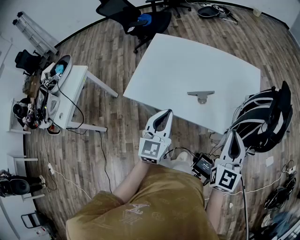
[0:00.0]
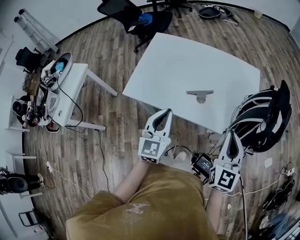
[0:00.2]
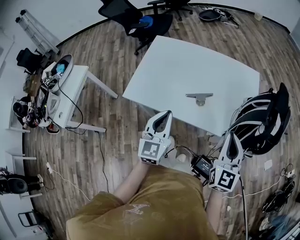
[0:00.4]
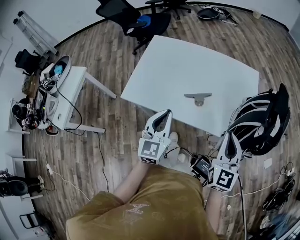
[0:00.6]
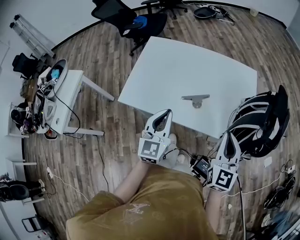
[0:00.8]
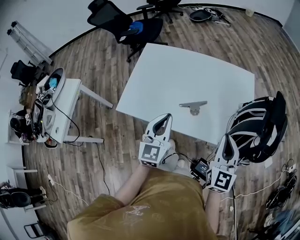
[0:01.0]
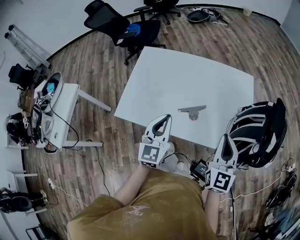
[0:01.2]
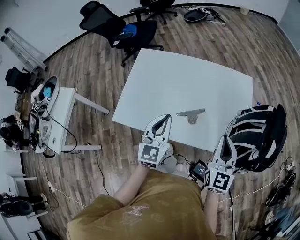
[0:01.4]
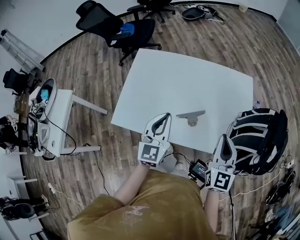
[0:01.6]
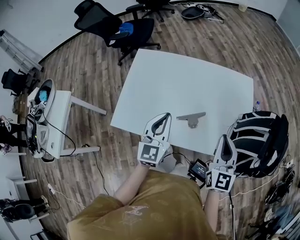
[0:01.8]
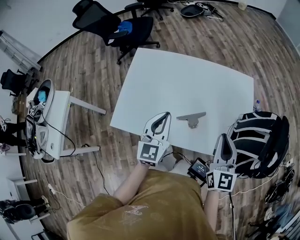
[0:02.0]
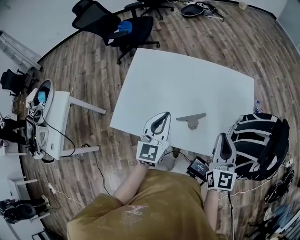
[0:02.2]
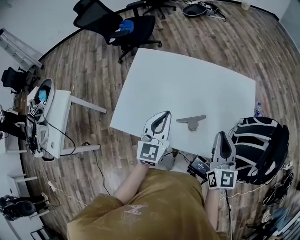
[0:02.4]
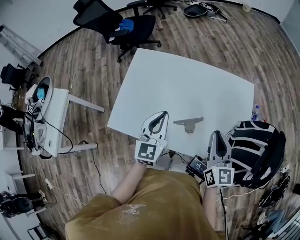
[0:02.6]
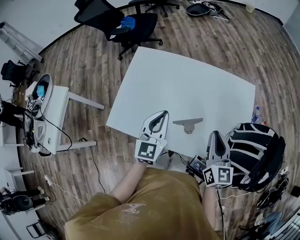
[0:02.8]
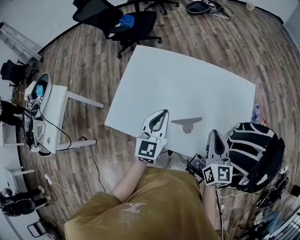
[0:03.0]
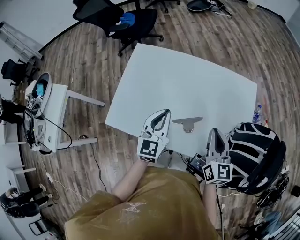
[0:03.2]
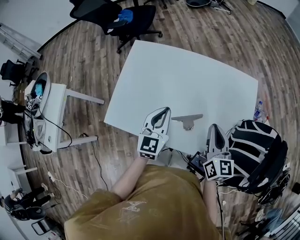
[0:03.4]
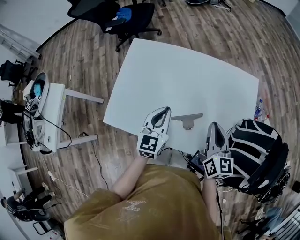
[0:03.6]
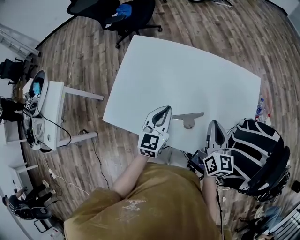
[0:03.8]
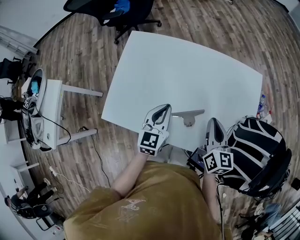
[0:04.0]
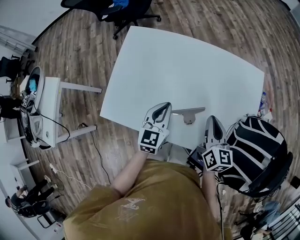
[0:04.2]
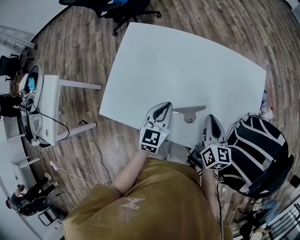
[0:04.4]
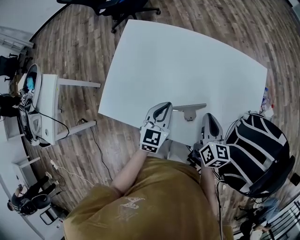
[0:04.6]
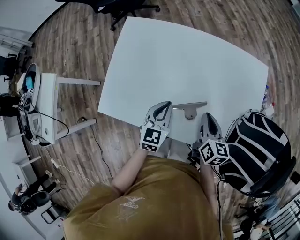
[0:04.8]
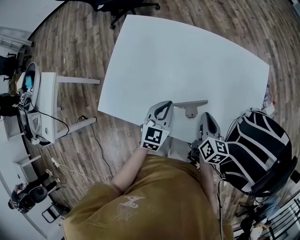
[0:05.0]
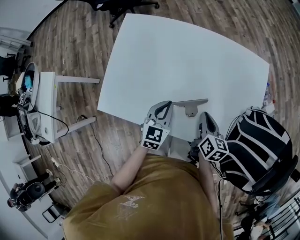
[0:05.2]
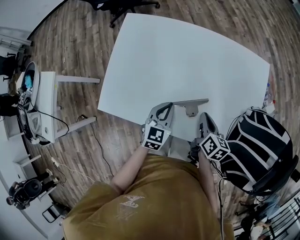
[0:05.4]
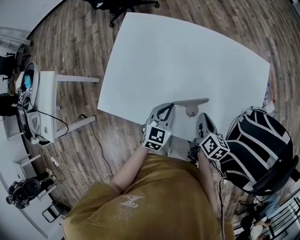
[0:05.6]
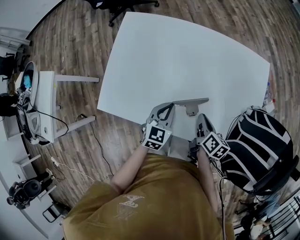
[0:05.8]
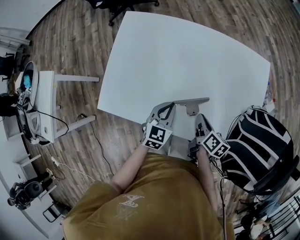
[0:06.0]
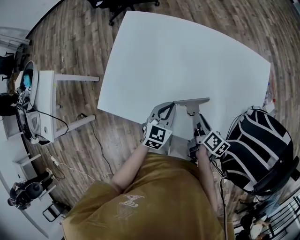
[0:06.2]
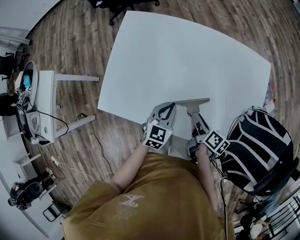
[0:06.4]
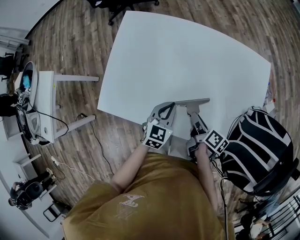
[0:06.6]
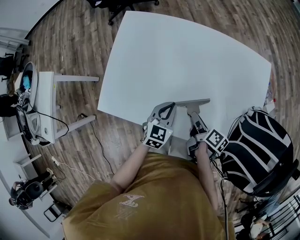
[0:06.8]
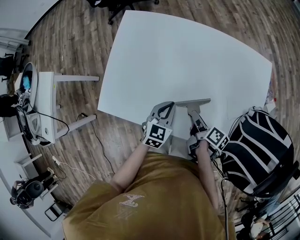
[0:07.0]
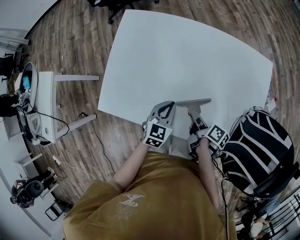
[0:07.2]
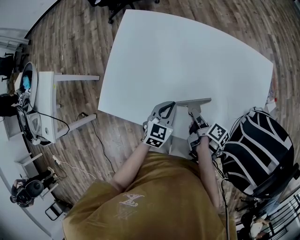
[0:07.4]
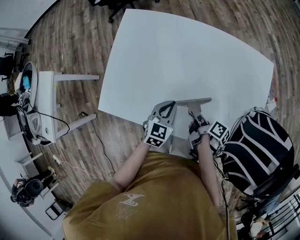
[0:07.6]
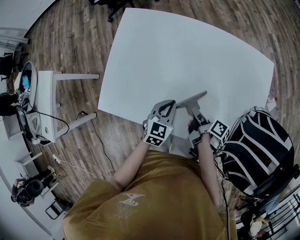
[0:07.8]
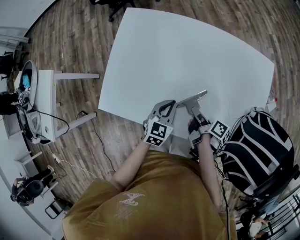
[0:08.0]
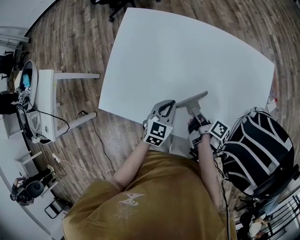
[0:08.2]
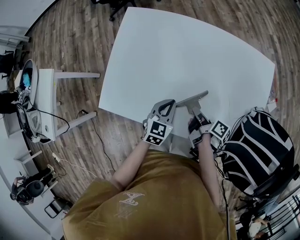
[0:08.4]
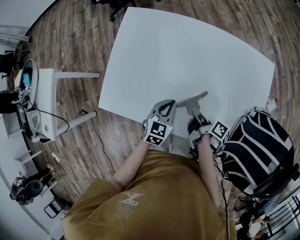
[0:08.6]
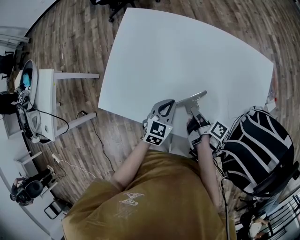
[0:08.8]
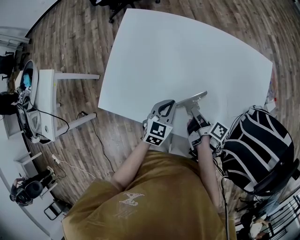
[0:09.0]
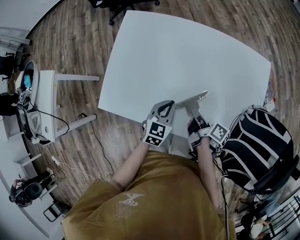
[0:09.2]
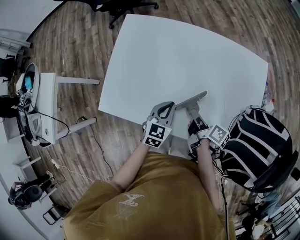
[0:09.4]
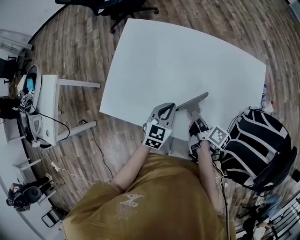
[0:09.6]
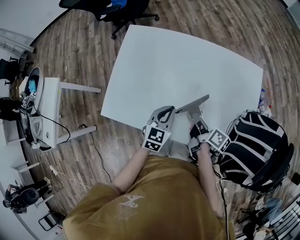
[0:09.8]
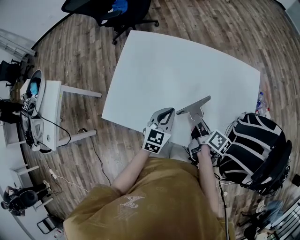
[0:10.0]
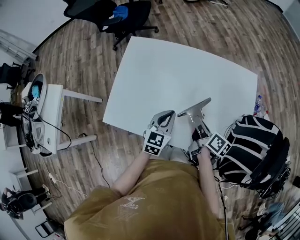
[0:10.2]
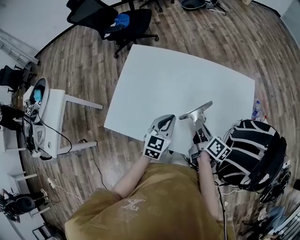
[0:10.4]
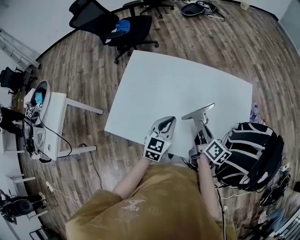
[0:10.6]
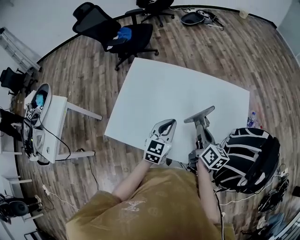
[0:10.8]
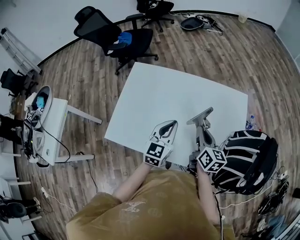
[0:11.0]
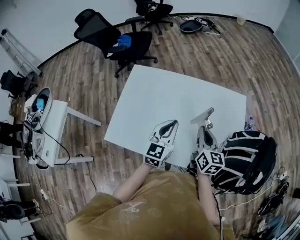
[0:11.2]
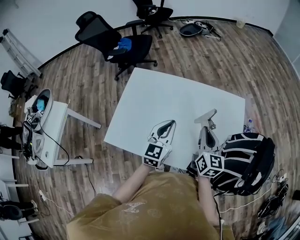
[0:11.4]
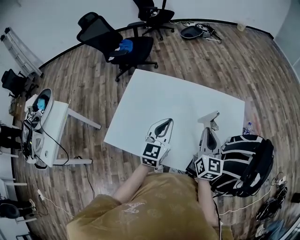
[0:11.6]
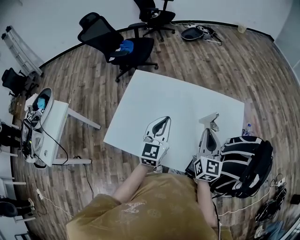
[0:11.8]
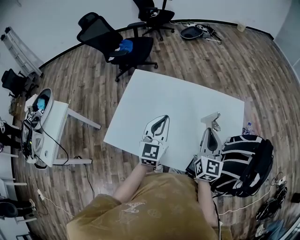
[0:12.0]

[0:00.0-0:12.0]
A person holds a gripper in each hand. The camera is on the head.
0:00.0 to 0:01.6: The two grippers go about 15 cm forward.
0:01.6 to 0:03.0: The grippers both shift forward by some 10 cm. The right gripper turns by approximately 20 degrees.
0:03.0 to 0:04.4: Both grippers travel together downward, some 10 cm.
0:04.4 to 0:06.0: The right gripper goes approximately 10 cm downward, and swivels roughly 30 degrees, while the left gripper heads downward, covering roughly 5 cm.
0:06.0 to 0:07.6: The right gripper changes place by approximately 5 cm, turns by roughly 30 degrees, and opens up.
0:07.6 to 0:09.0: The right gripper closes its fingers.
0:09.0 to 0:10.4: The two grippers go about 10 cm upward. The right gripper turns by some 30 degrees.
0:10.4 to 0:12.0: The two grippers go roughly 15 cm upward. The right gripper twists about 50 degrees counterclockwise, seen from behind. The left gripper swivels approximately 20 degrees.

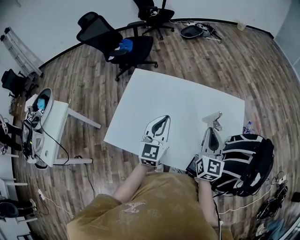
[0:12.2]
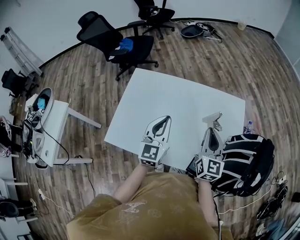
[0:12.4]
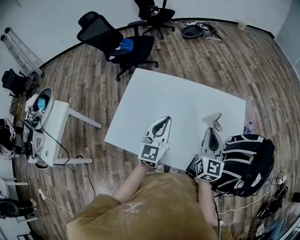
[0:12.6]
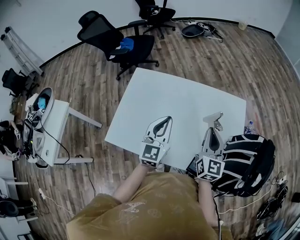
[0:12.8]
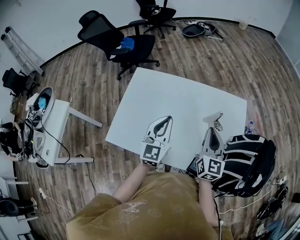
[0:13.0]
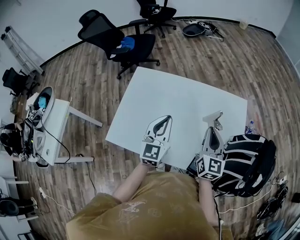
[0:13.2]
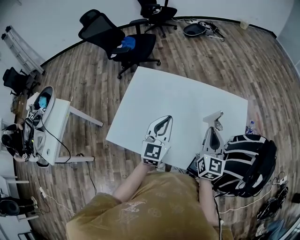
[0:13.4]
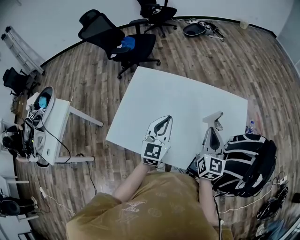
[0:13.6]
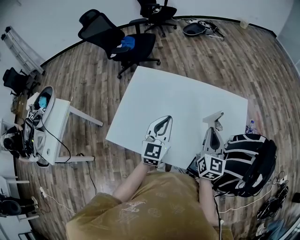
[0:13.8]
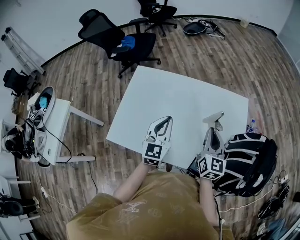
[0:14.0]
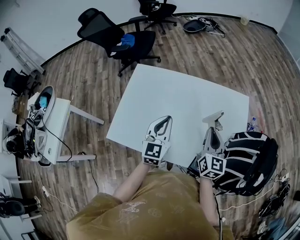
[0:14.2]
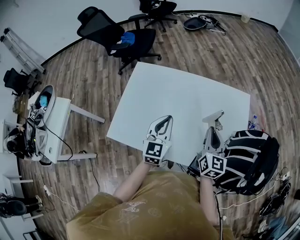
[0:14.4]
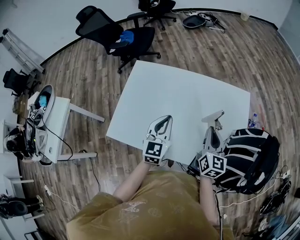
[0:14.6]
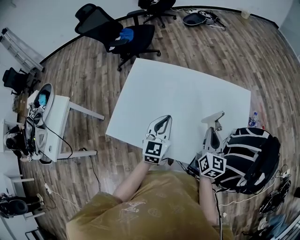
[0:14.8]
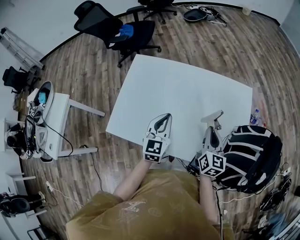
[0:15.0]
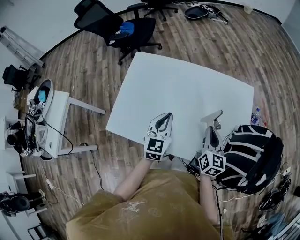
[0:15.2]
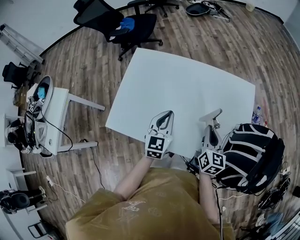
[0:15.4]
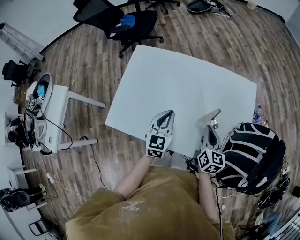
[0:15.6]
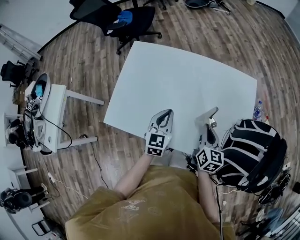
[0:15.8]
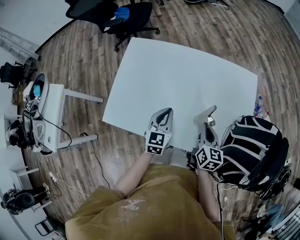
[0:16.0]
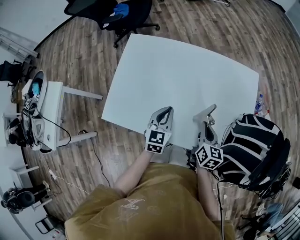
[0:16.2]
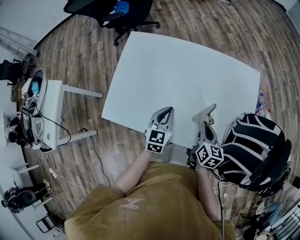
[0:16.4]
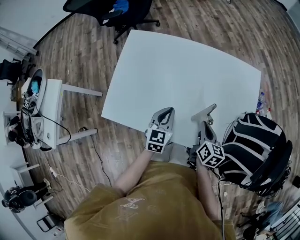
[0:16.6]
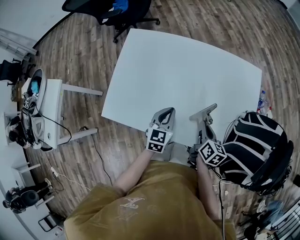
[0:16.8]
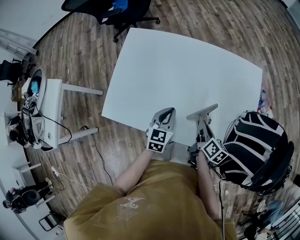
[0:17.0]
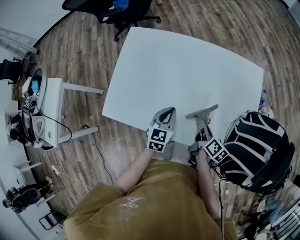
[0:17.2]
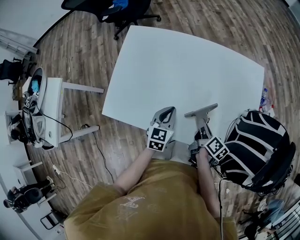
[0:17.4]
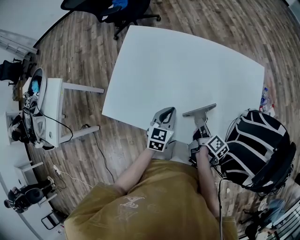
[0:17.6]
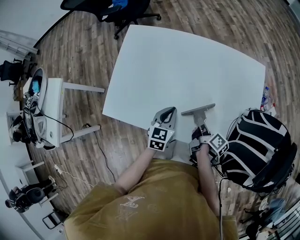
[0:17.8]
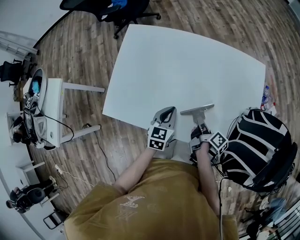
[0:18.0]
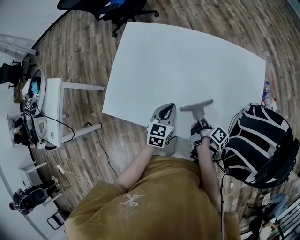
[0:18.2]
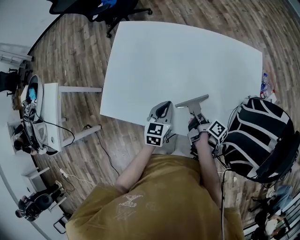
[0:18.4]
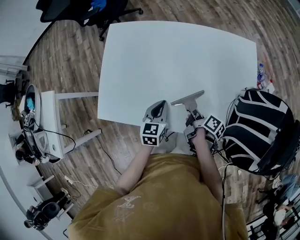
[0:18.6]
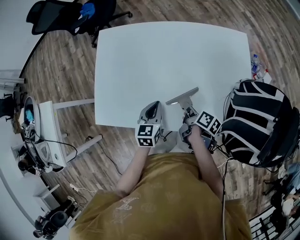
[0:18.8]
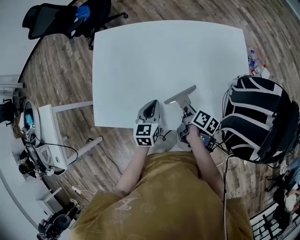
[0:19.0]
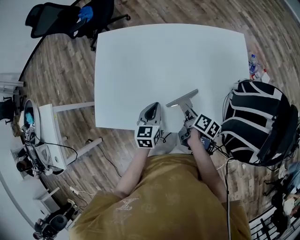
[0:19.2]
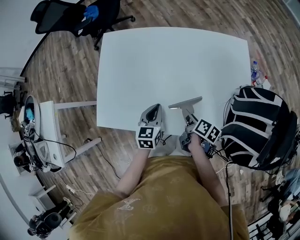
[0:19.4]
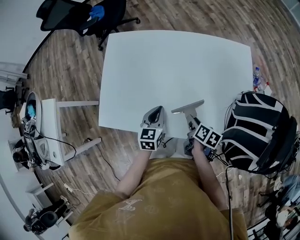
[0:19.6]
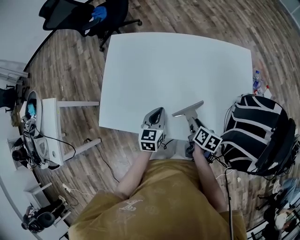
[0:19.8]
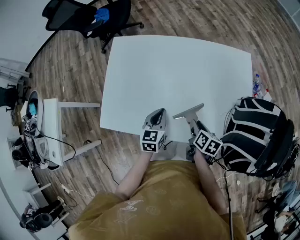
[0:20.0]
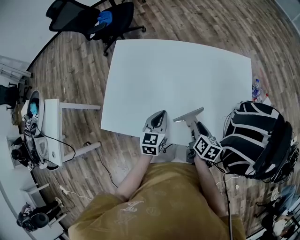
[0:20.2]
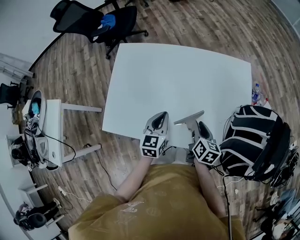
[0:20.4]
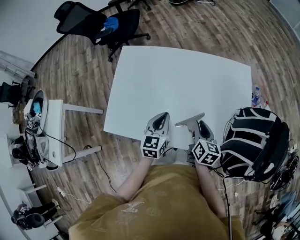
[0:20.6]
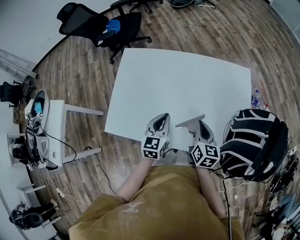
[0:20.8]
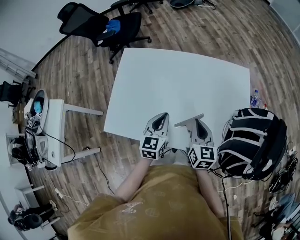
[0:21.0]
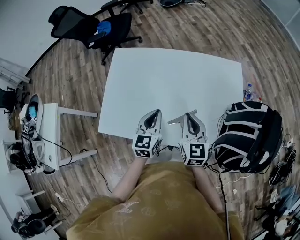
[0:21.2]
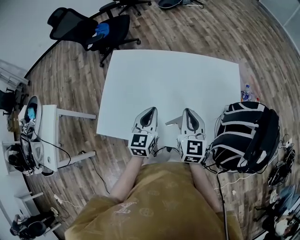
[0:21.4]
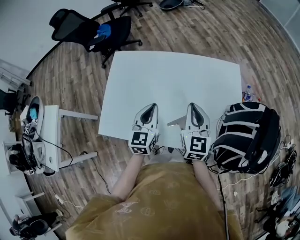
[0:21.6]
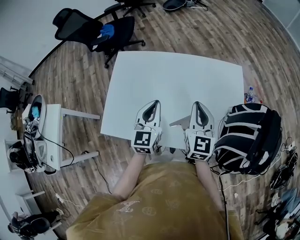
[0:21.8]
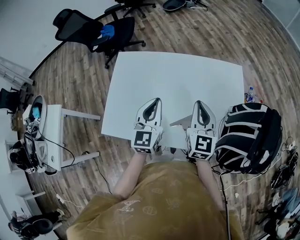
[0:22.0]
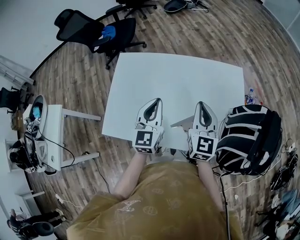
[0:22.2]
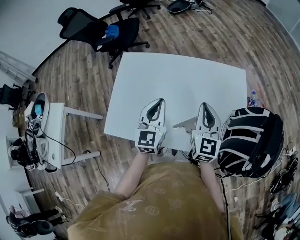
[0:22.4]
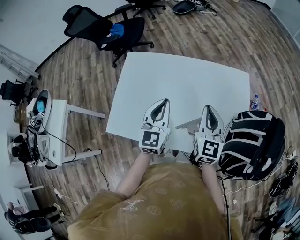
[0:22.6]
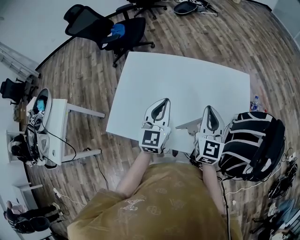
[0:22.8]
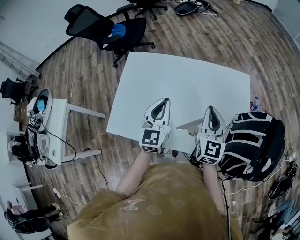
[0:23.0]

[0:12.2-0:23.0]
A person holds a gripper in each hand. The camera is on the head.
0:12.2 to 0:13.8: The grippers move only a little.
0:13.8 to 0:15.2: Both grippers move downward, roughly 5 cm.
0:15.2 to 0:16.8: The grippers both shift downward by approximately 10 cm. The right gripper rotates some 30 degrees.
0:16.8 to 0:18.4: The right gripper is displaced downward by about 5 cm, and twists some 50 degrees clockwise, seen from behind.
0:18.4 to 0:20.0: The right gripper swivels approximately 40 degrees, and opens.
0:20.0 to 0:21.4: The right gripper travels upward by approximately 20 cm, tilts its fingers some 30 degrees upward, and closes its fingers. Meanwhile the left gripper heads upward, covering about 10 cm.
0:21.4 to 0:23.0: The right gripper shifts by some 5 cm, while the left gripper goes about 10 cm upward.

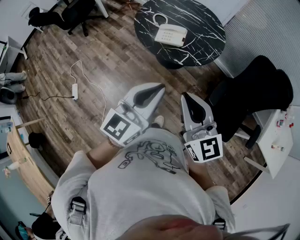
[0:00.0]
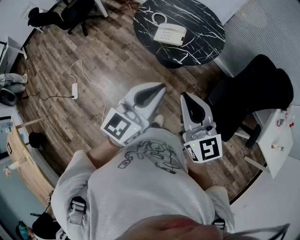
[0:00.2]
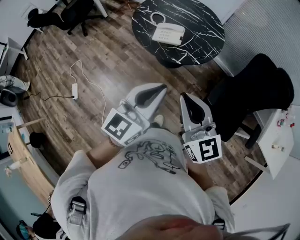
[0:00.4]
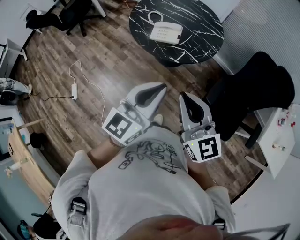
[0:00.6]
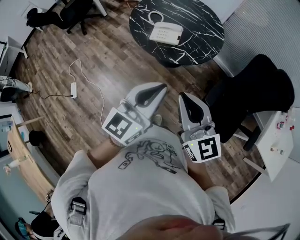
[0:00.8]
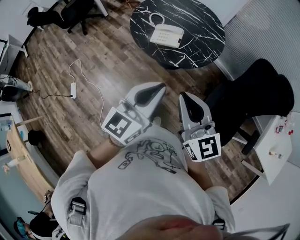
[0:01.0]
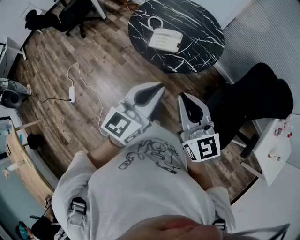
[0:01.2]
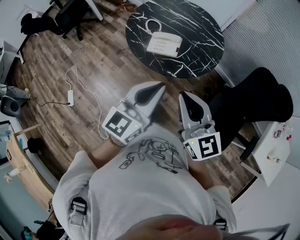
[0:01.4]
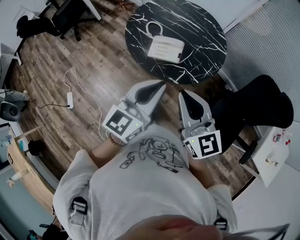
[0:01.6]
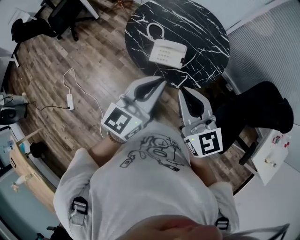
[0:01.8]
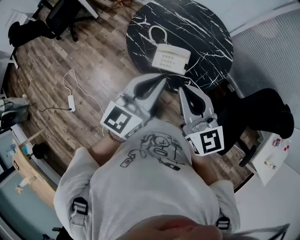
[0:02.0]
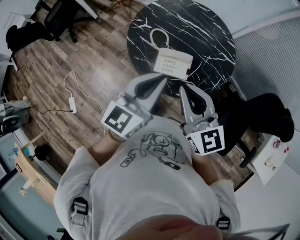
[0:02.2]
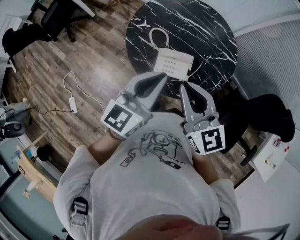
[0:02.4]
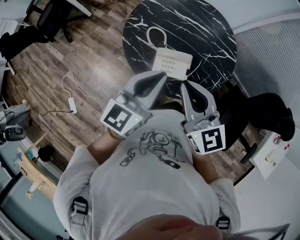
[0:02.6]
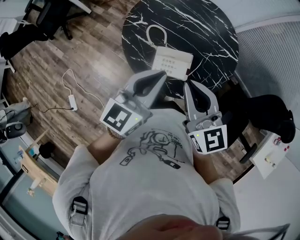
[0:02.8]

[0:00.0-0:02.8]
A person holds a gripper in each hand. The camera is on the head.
0:00.0 to 0:01.4: The two grippers go approximately 15 cm forward.
0:01.4 to 0:02.8: Both grippers move forward, some 35 cm.
